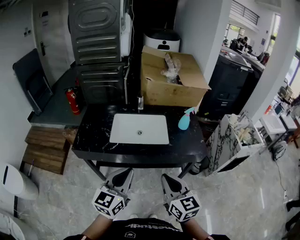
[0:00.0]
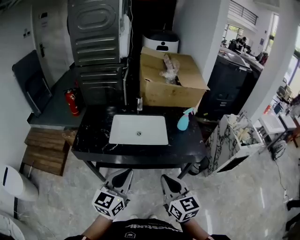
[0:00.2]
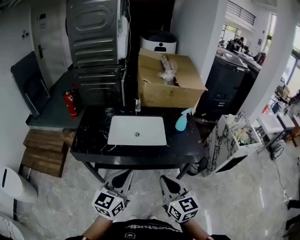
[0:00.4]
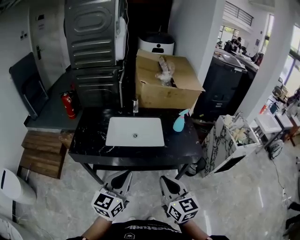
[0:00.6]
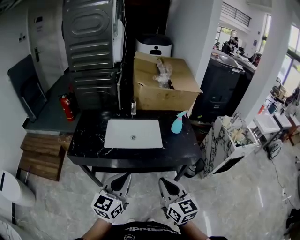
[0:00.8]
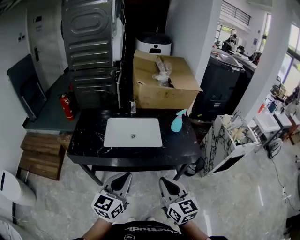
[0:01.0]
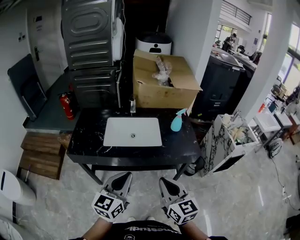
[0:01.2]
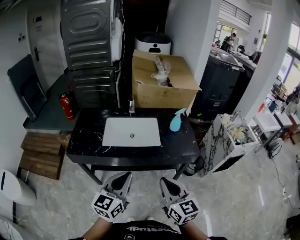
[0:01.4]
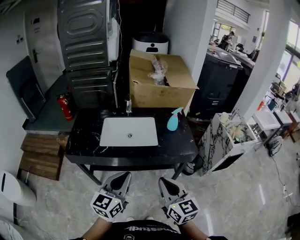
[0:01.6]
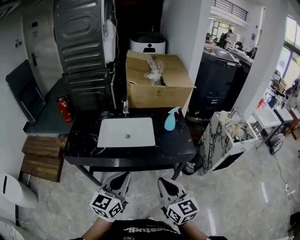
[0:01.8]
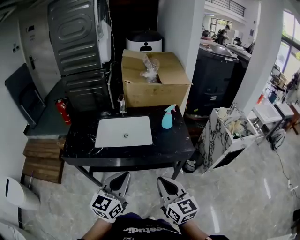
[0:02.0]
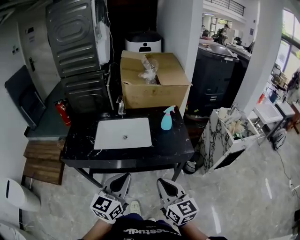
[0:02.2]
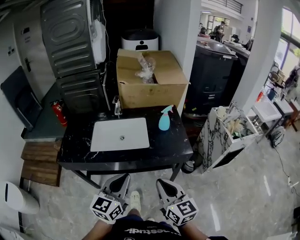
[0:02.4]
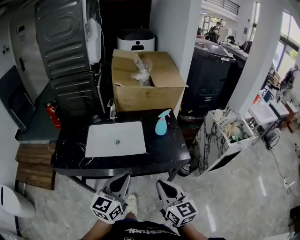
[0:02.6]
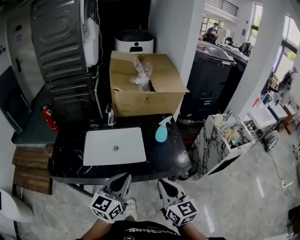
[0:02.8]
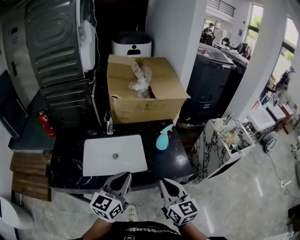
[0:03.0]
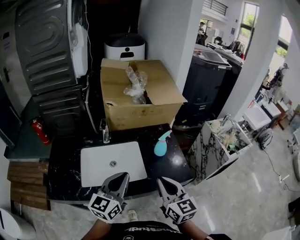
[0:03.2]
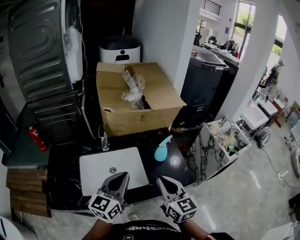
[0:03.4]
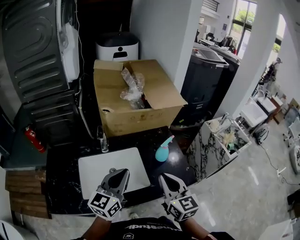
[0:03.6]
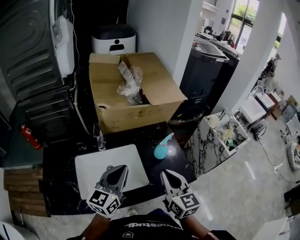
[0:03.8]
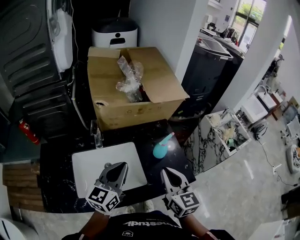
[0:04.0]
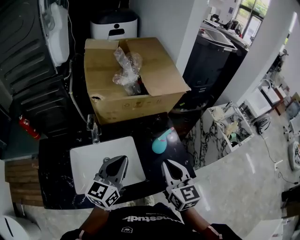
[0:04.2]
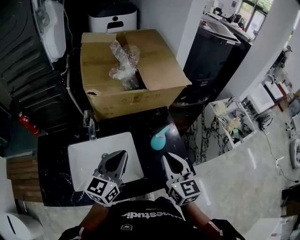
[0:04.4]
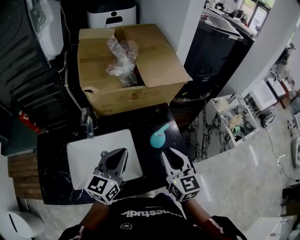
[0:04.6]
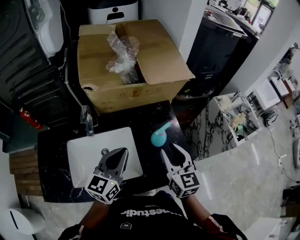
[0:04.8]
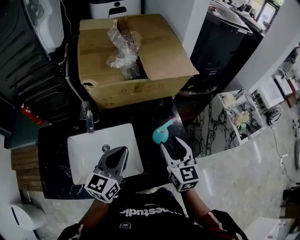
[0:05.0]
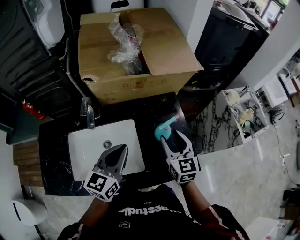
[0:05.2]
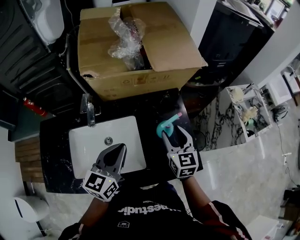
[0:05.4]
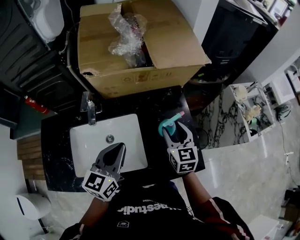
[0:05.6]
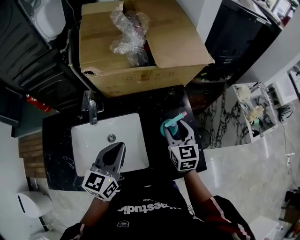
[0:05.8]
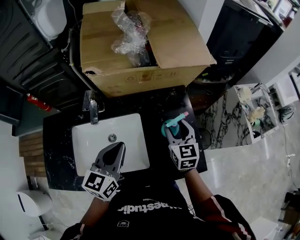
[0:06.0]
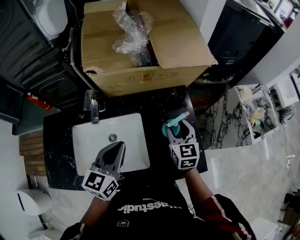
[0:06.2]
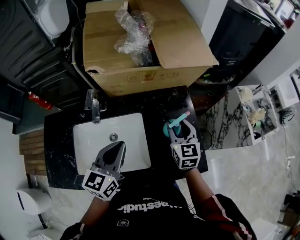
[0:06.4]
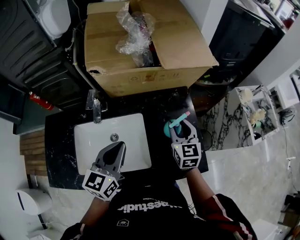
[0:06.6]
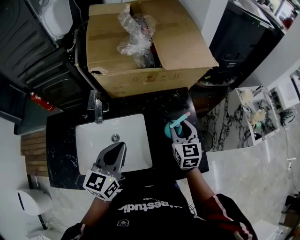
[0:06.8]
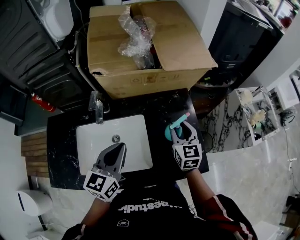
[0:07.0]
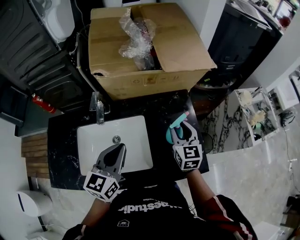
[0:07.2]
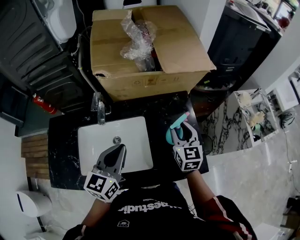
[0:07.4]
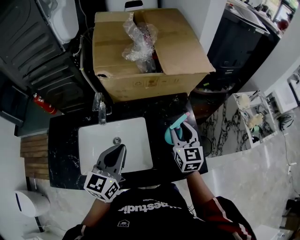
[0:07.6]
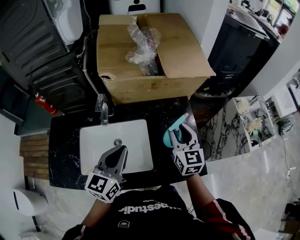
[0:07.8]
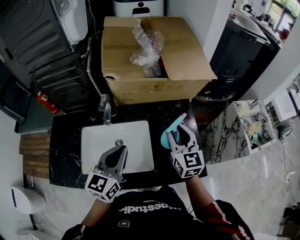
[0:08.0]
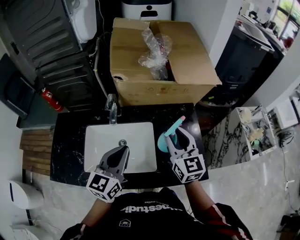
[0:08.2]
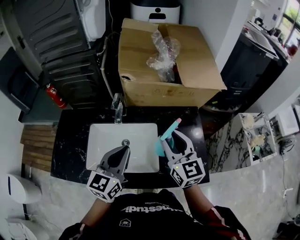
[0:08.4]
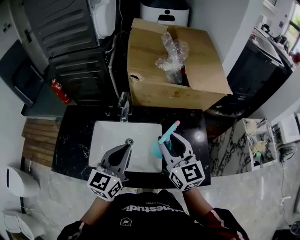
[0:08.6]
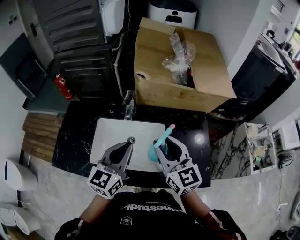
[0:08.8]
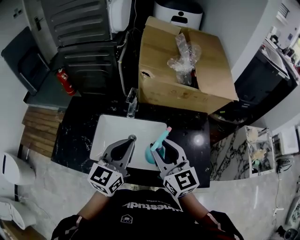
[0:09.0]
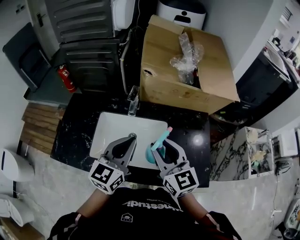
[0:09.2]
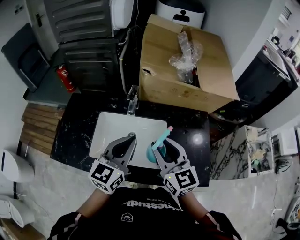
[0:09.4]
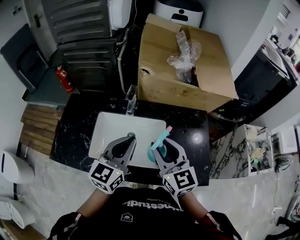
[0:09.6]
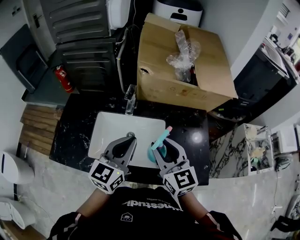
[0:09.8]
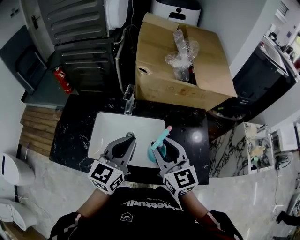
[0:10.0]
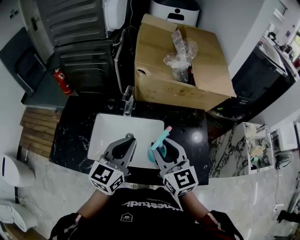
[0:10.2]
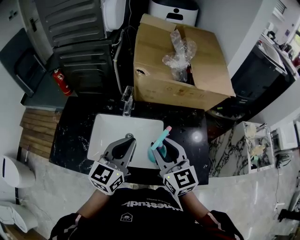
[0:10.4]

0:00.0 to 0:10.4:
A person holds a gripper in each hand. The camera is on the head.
0:00.0 to 0:01.4: There are only small adjustments of the grippers.
0:01.4 to 0:03.0: The grippers both shift forward by some 20 cm.
0:03.0 to 0:04.4: Both grippers move forward, approximately 20 cm.
0:04.4 to 0:06.0: The left gripper travels downward by approximately 5 cm. Meanwhile the right gripper travels forward and downward by about 20 cm, and opens its fingers.
0:06.0 to 0:07.4: There are only small adjustments of the grippers.
0:07.4 to 0:09.0: The right gripper goes approximately 25 cm to the left, upward and backward, and turns by roughly 30 degrees. Meanwhile the left gripper moves to the left, roughly 10 cm.
0:09.0 to 0:10.4: The grippers make only small movements.

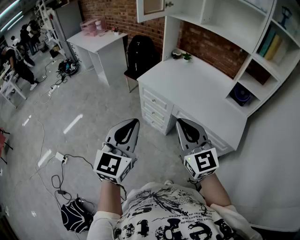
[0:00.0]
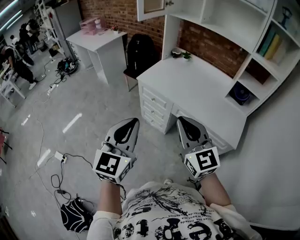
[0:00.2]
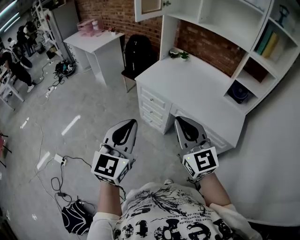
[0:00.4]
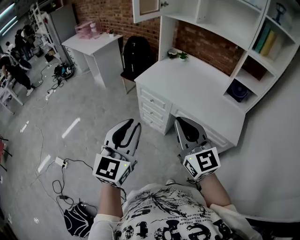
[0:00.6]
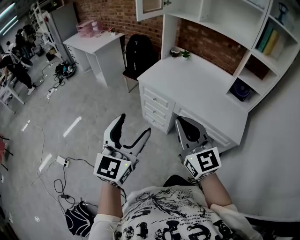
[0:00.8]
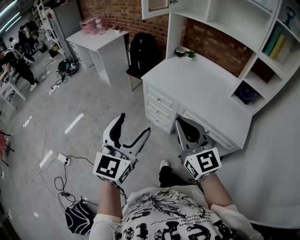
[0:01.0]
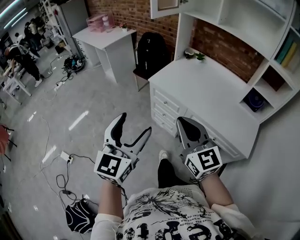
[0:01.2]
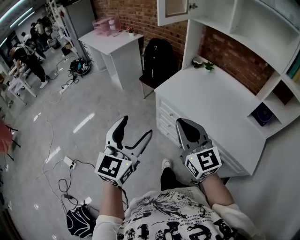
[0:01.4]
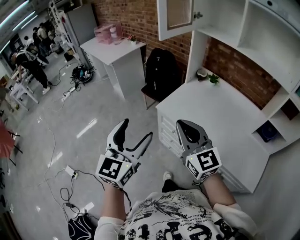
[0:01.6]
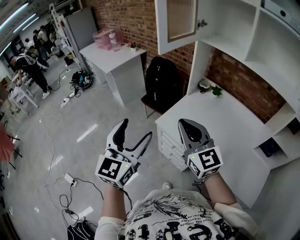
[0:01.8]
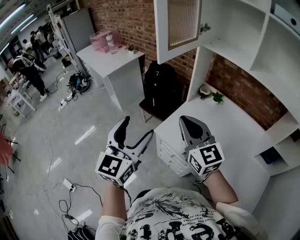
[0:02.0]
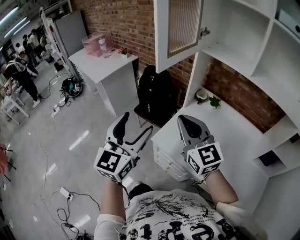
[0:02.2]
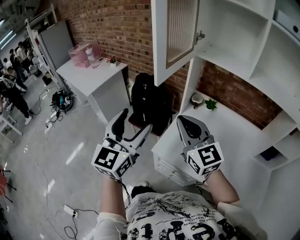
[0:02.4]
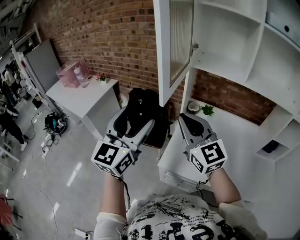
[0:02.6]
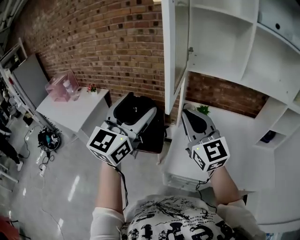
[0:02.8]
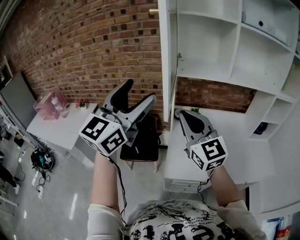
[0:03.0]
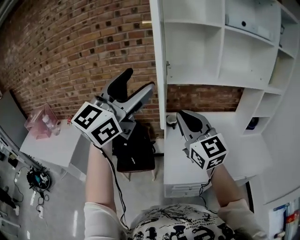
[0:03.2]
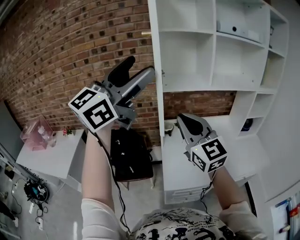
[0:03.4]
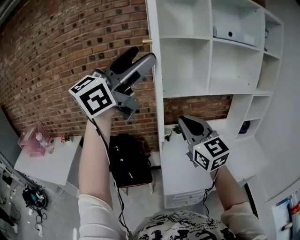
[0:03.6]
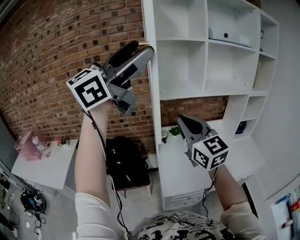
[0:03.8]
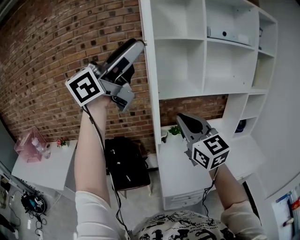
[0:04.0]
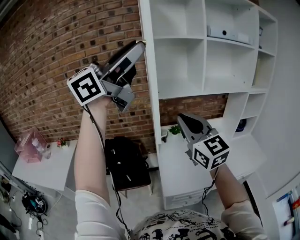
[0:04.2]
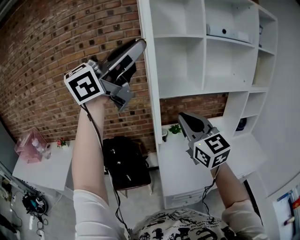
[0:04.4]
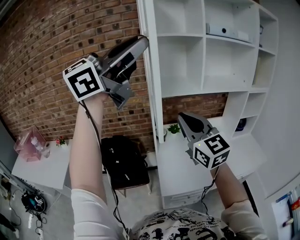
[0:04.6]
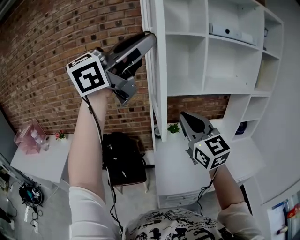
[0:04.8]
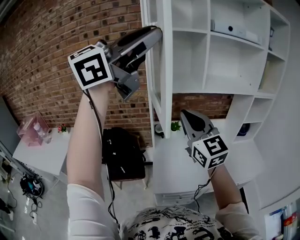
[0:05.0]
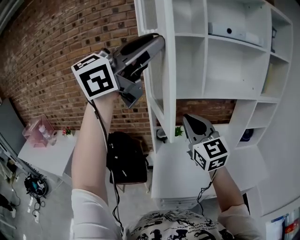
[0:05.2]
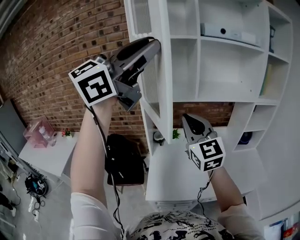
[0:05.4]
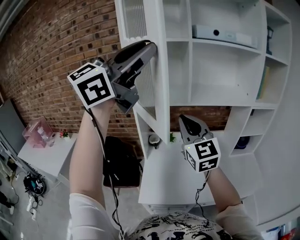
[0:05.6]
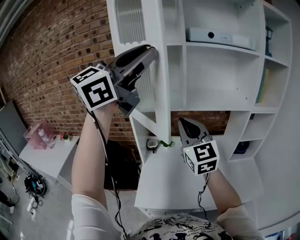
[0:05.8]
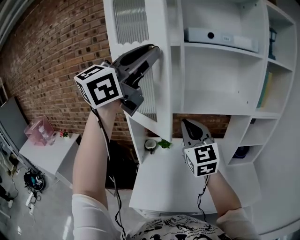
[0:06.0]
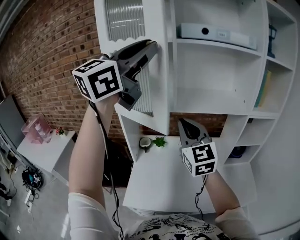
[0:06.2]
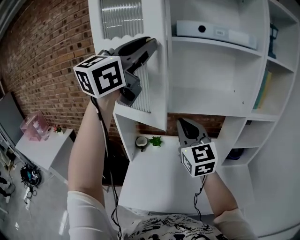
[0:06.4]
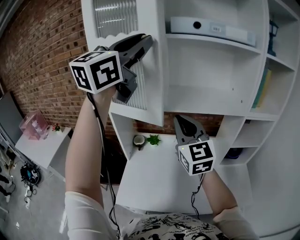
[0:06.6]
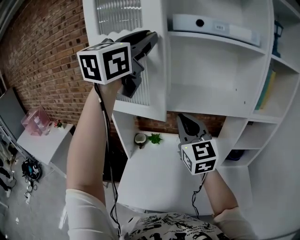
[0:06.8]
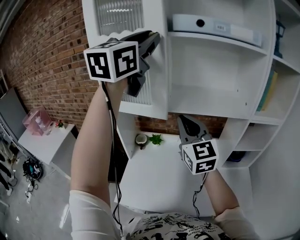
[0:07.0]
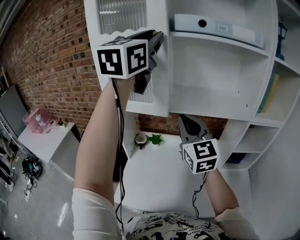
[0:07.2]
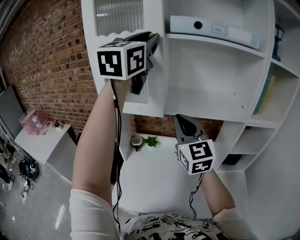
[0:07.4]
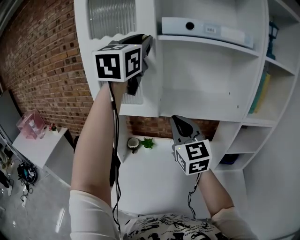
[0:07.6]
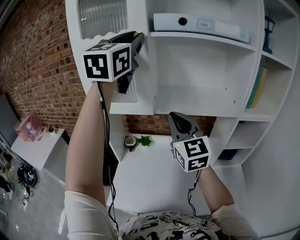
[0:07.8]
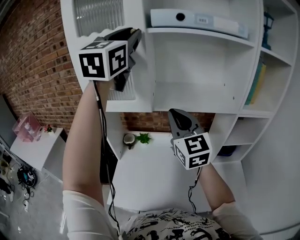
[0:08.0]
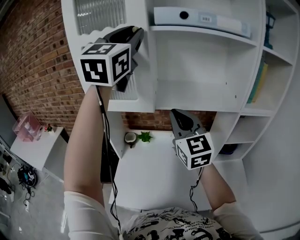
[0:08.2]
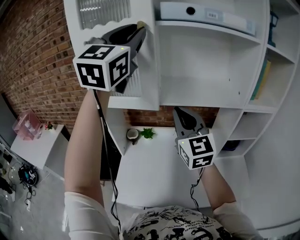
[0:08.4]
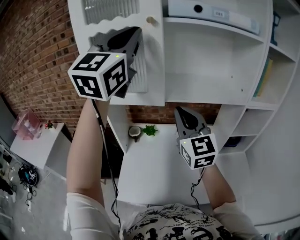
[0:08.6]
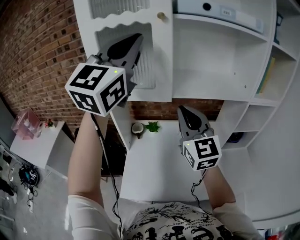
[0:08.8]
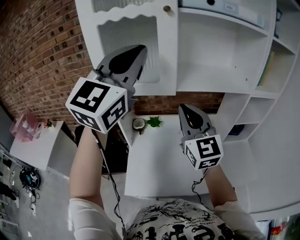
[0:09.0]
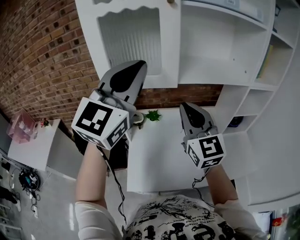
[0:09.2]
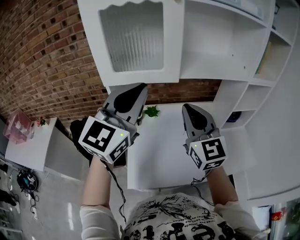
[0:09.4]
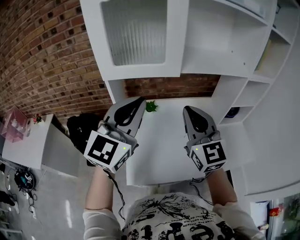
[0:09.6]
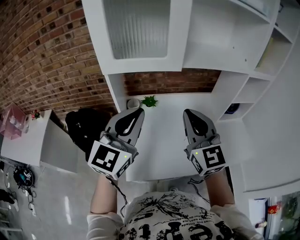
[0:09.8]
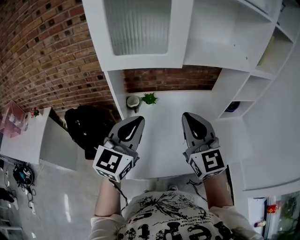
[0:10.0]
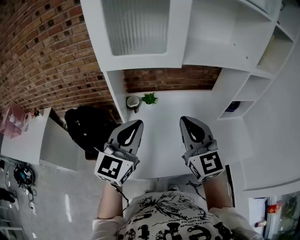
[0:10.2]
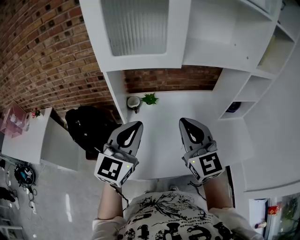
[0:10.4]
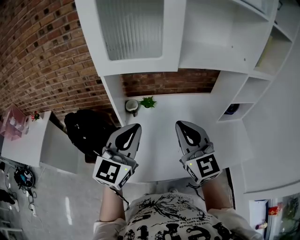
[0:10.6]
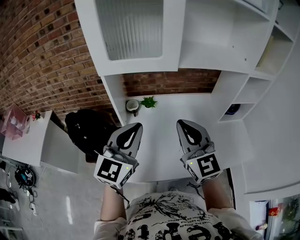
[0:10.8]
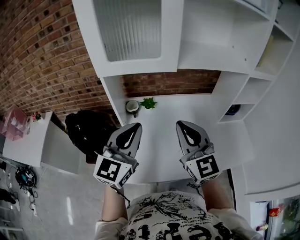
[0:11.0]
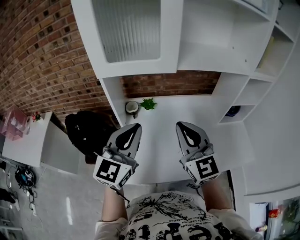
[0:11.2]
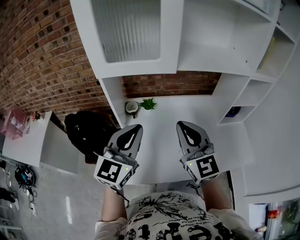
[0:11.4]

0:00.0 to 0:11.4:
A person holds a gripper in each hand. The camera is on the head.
0:00.0 to 0:01.4: Both grippers move forward and to the left, some 20 cm. The left gripper opens its fingers.
0:01.4 to 0:02.8: Both grippers are carried approximately 60 cm. The right gripper swivels roughly 30 degrees. Meanwhile the left gripper rotates about 40 degrees.
0:02.8 to 0:04.2: The left gripper moves upward, some 25 cm, swivels approximately 60 degrees, and closes its fingers; the right gripper heads upward, covering roughly 10 cm.
0:04.2 to 0:05.6: The right gripper is displaced forward and to the right by roughly 20 cm; the left gripper shifts some 20 cm to the right and forward, and changes its angle by roughly 20 degrees.
0:05.6 to 0:07.2: The two grippers go some 20 cm forward and to the right. The left gripper changes its angle by about 40 degrees.
0:07.2 to 0:08.6: The left gripper moves about 5 cm.
0:08.6 to 0:10.0: The left gripper moves downward, some 35 cm, and changes its angle by about 30 degrees. Meanwhile the right gripper shifts roughly 15 cm backward, downward and to the left.
0:10.0 to 0:11.4: The grippers stay close to where they were, moving slightly.

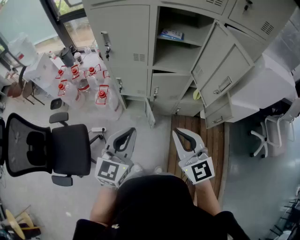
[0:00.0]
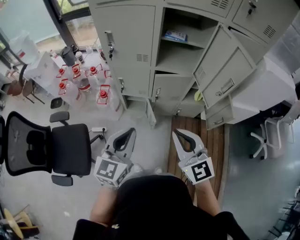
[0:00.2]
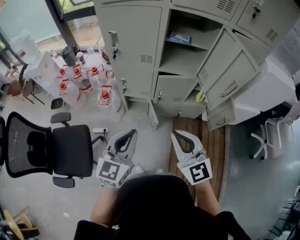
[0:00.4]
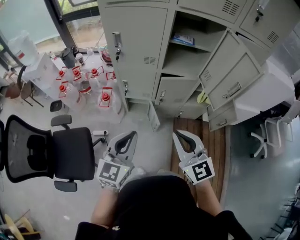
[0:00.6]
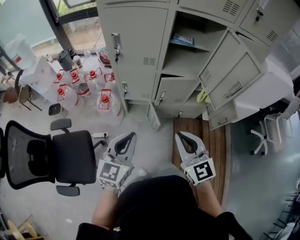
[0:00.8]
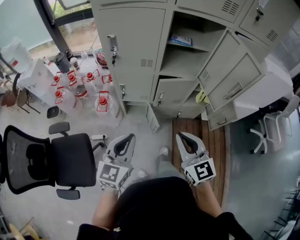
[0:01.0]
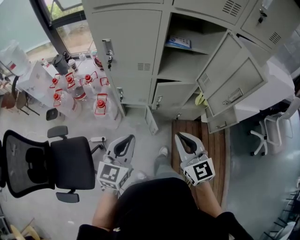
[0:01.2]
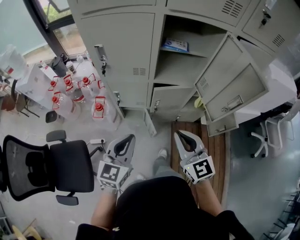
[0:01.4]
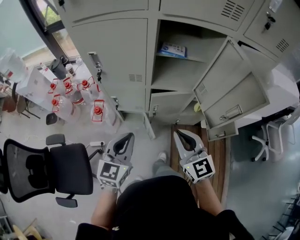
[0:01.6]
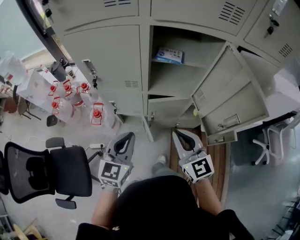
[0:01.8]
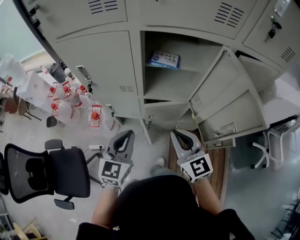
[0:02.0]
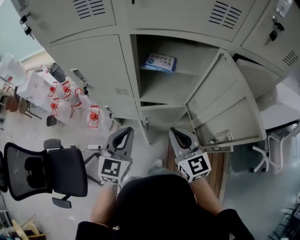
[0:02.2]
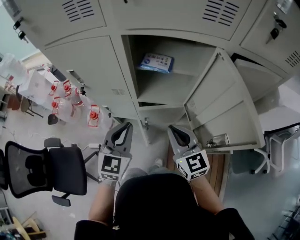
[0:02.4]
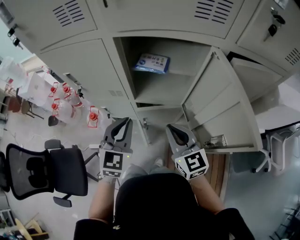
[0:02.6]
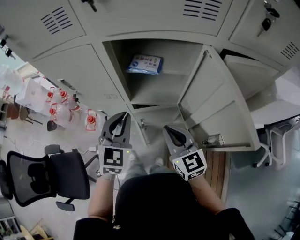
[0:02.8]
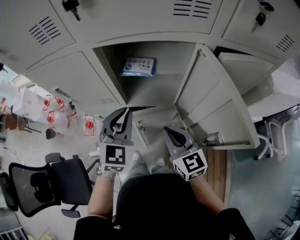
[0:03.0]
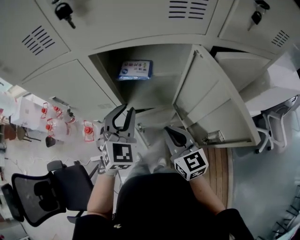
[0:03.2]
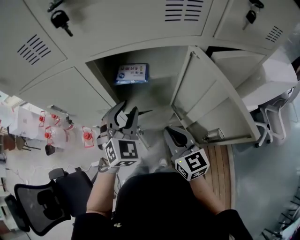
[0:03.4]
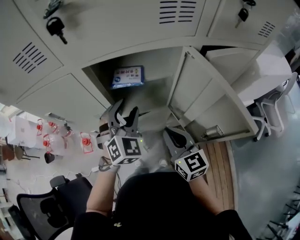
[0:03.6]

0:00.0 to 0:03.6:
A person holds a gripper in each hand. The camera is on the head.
0:00.0 to 0:01.8: The two grippers go roughly 20 cm forward.
0:01.8 to 0:03.6: The left gripper is displaced forward and to the right by approximately 25 cm, twists some 40 degrees clockwise, seen from behind, and opens up; the right gripper travels forward and to the right by approximately 15 cm, and turns by roughly 20 degrees.
